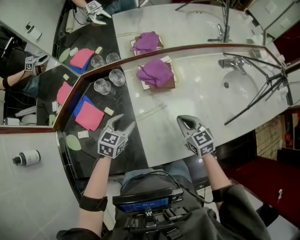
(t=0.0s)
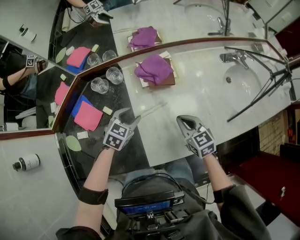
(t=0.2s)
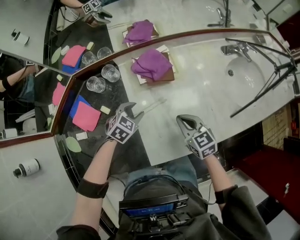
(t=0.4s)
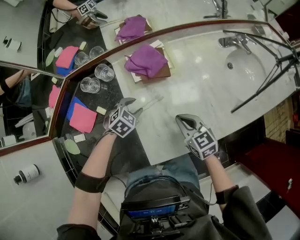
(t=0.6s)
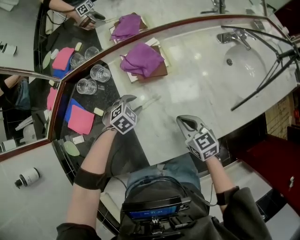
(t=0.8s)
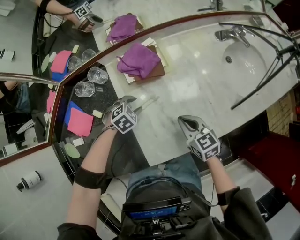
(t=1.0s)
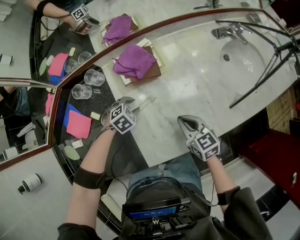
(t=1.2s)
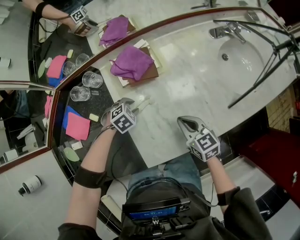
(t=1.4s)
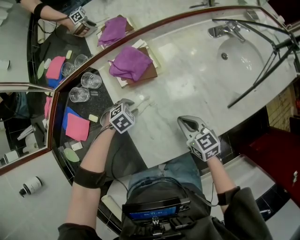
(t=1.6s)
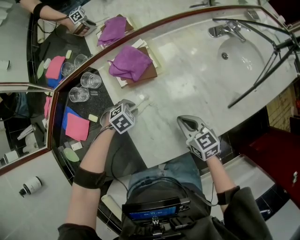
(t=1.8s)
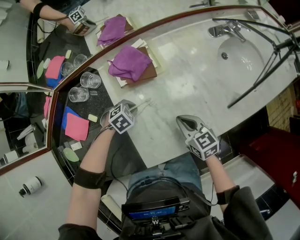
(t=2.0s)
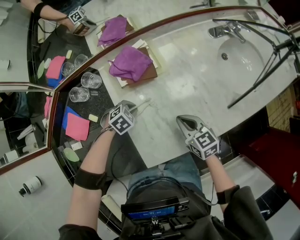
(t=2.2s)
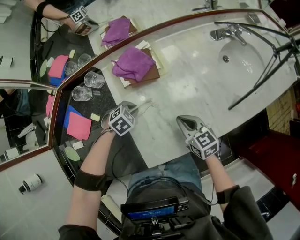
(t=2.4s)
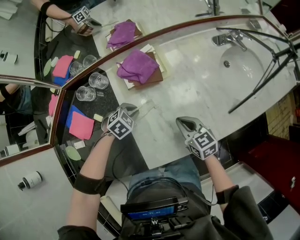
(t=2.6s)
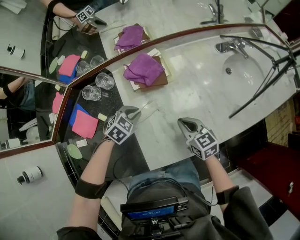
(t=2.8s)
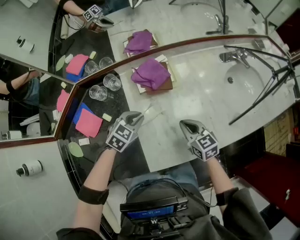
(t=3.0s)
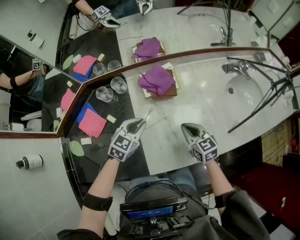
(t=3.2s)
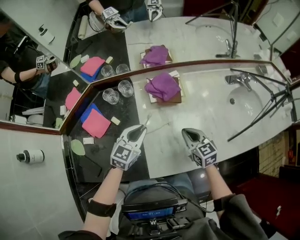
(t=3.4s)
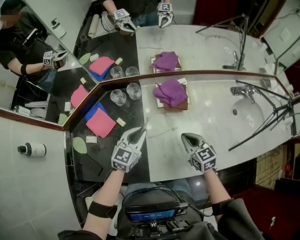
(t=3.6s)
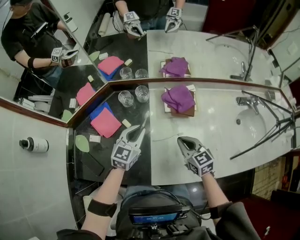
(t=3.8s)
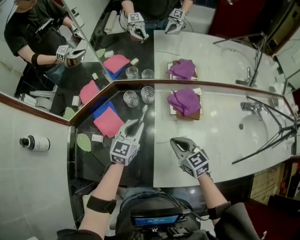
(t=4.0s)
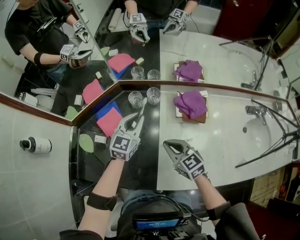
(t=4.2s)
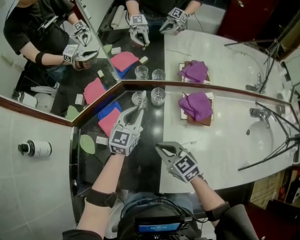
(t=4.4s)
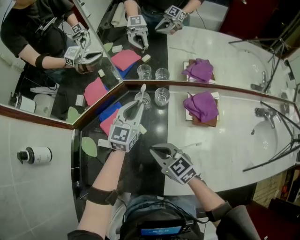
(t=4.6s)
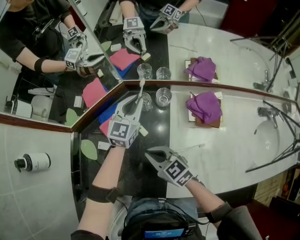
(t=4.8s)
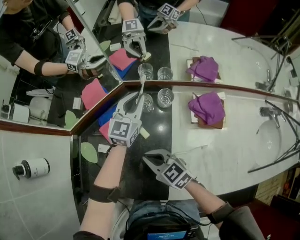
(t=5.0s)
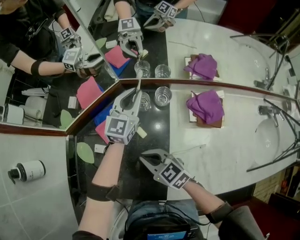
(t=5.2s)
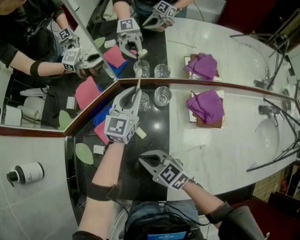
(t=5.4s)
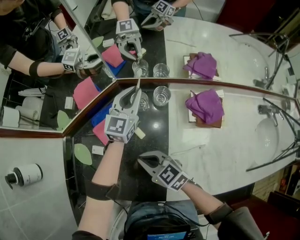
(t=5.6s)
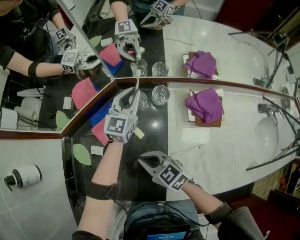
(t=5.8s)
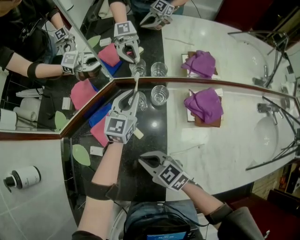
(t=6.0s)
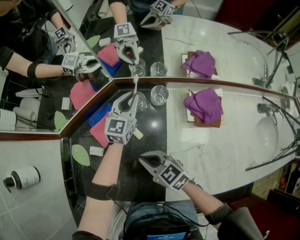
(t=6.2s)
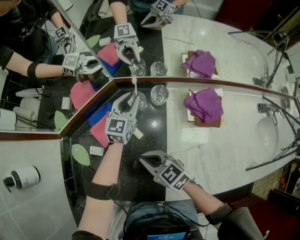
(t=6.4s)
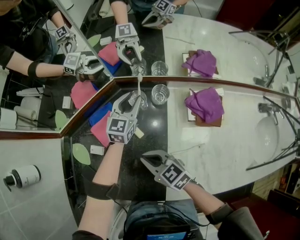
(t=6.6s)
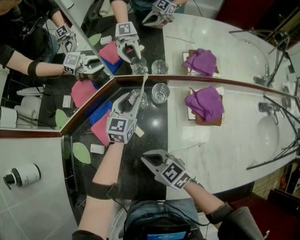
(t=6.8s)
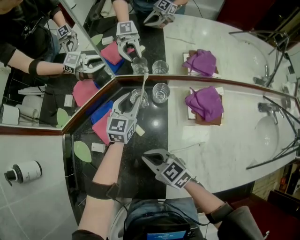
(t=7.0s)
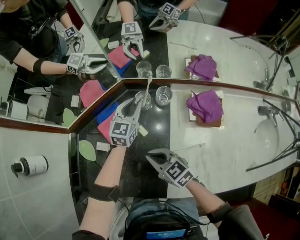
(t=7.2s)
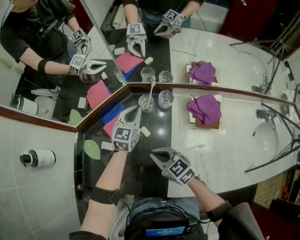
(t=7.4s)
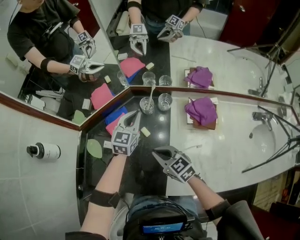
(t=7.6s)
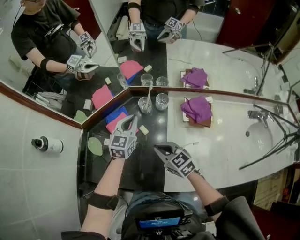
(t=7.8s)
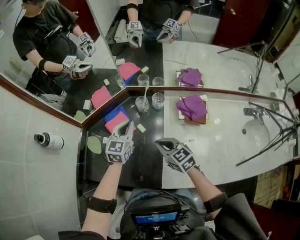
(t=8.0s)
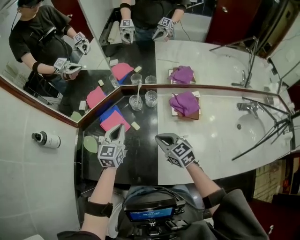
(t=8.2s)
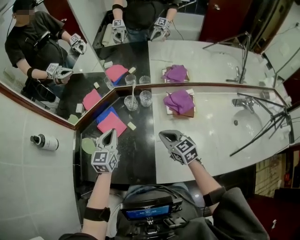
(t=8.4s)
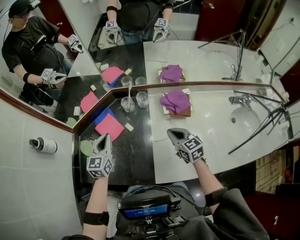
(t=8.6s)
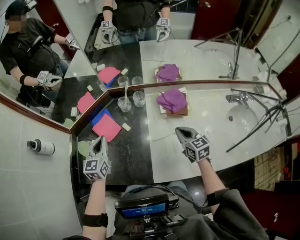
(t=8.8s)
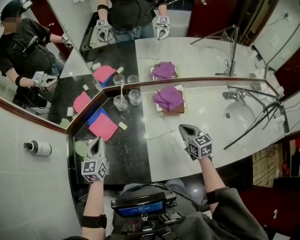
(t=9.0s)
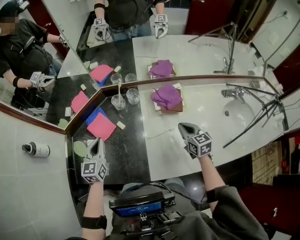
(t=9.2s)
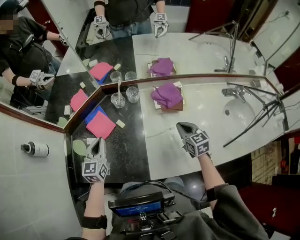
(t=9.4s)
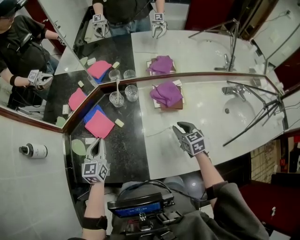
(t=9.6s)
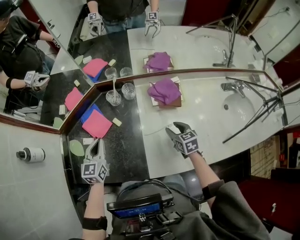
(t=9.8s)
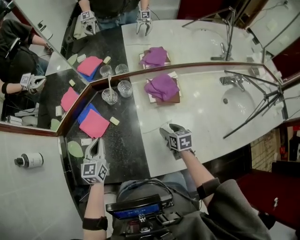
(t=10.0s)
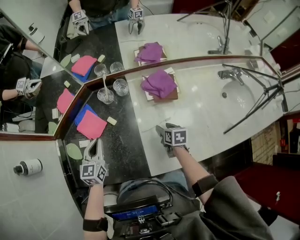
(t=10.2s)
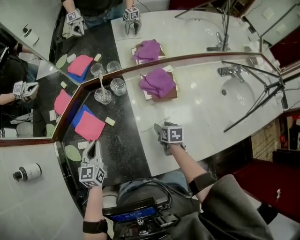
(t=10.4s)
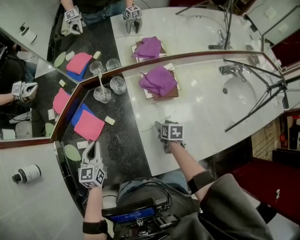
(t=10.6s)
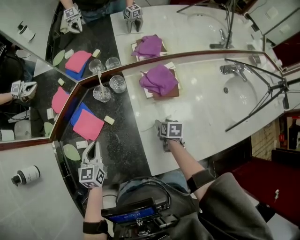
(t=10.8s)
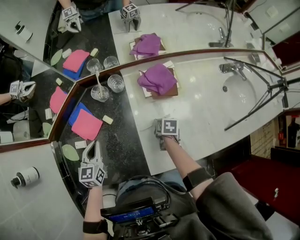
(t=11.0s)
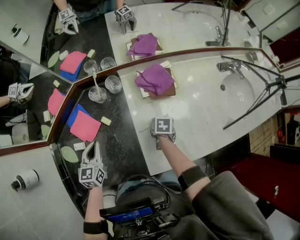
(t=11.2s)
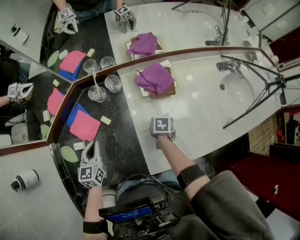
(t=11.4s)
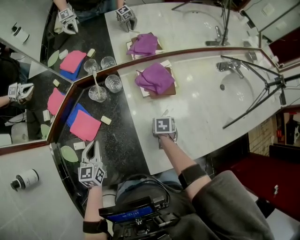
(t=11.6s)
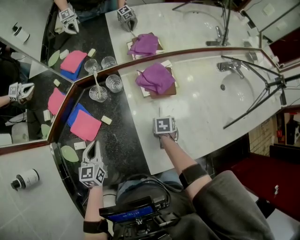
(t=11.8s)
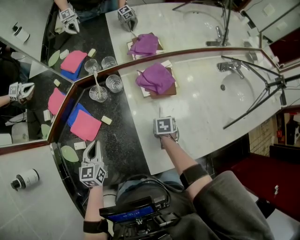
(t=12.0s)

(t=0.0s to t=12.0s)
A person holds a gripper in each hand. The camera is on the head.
t=0.0s - t=1.6s: The left gripper heads downward and to the right, covering approximately 20 cm, and points its fingers roughly 30 degrees further downward. Meanwhile the right gripper shifts approximately 10 cm downward and to the right.
t=1.6s - t=3.0s: The right gripper moves some 5 cm. The left gripper shifts some 15 cm upward, and changes its angle by some 30 degrees.
t=3.0s - t=4.4s: The left gripper moves approximately 25 cm, and angles its fingers upward, by about 30 degrees. The right gripper shifts by approximately 30 cm, and swivels about 30 degrees.
t=4.4s - t=6.0s: The left gripper is displaced forward and downward by some 10 cm. The right gripper moves to the left and downward, some 10 cm.
t=6.0s - t=7.6s: The right gripper moves upward, roughly 5 cm; the left gripper moves backward and to the left, approximately 10 cm, and opens, then closes again.
t=7.6s - t=9.0s: The left gripper goes some 20 cm backward, to the left and upward. Meanwhile the right gripper moves to the right, about 25 cm, and turns by about 40 degrees.
t=9.0s - t=10.4s: The left gripper is displaced downward by about 5 cm. Meanwhile the right gripper shifts some 20 cm downward, rotates some 40 degrees, and opens.
t=10.4s - t=12.0s: The right gripper closes its fingers.

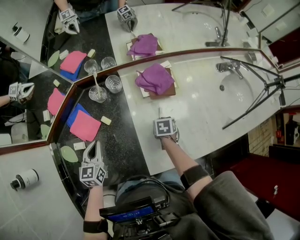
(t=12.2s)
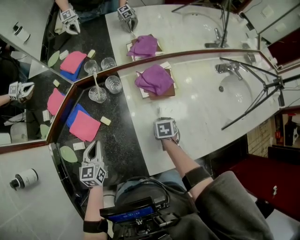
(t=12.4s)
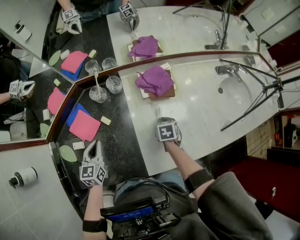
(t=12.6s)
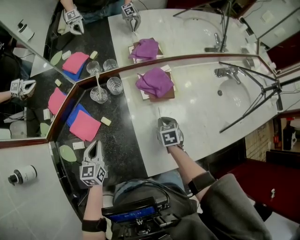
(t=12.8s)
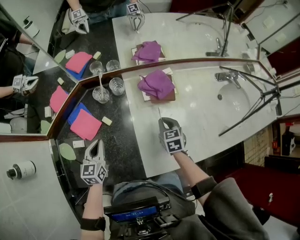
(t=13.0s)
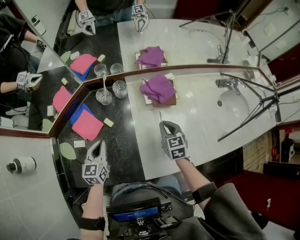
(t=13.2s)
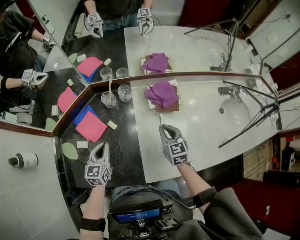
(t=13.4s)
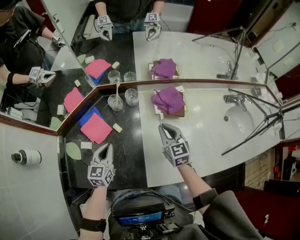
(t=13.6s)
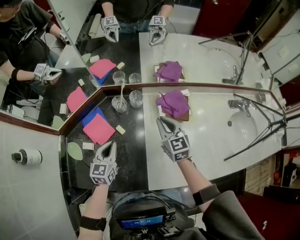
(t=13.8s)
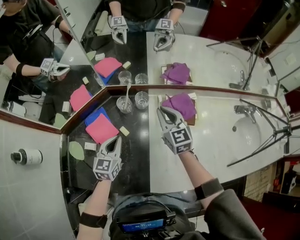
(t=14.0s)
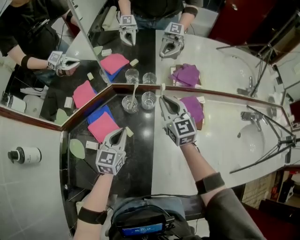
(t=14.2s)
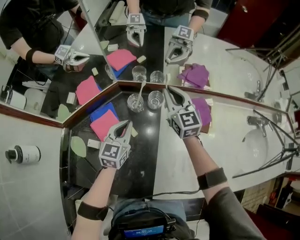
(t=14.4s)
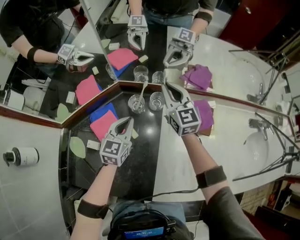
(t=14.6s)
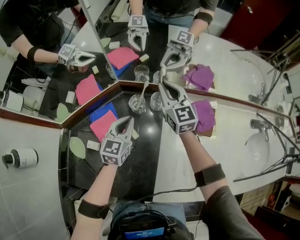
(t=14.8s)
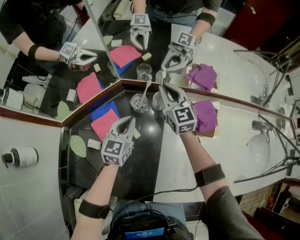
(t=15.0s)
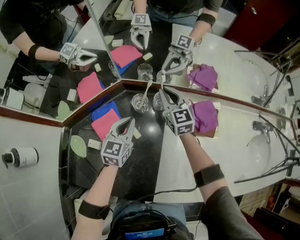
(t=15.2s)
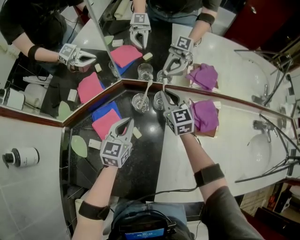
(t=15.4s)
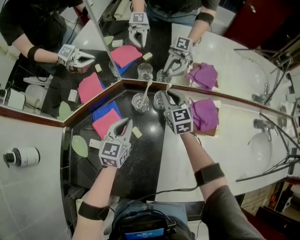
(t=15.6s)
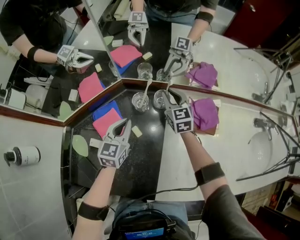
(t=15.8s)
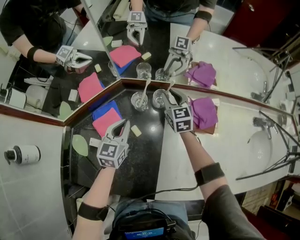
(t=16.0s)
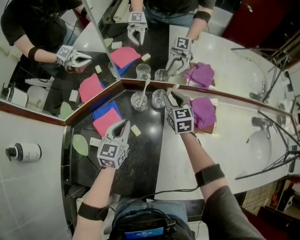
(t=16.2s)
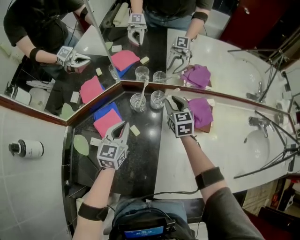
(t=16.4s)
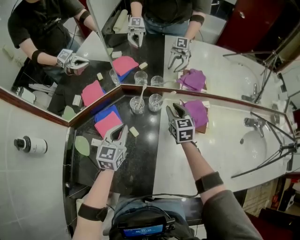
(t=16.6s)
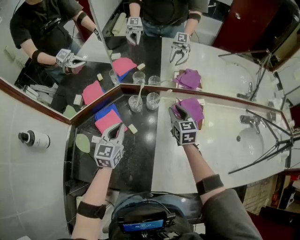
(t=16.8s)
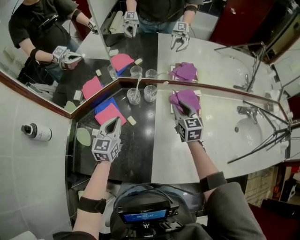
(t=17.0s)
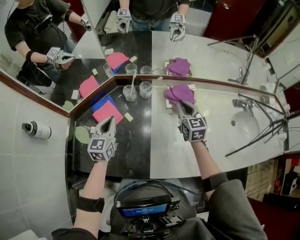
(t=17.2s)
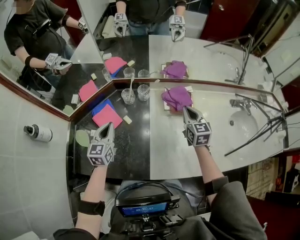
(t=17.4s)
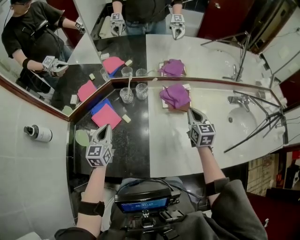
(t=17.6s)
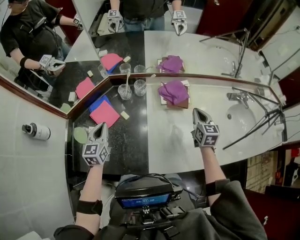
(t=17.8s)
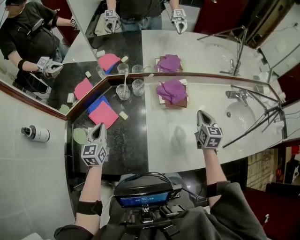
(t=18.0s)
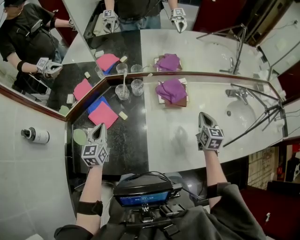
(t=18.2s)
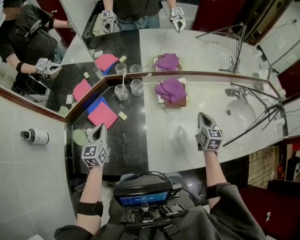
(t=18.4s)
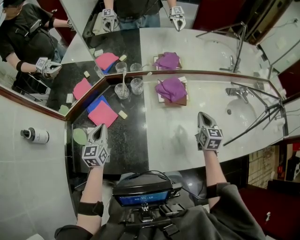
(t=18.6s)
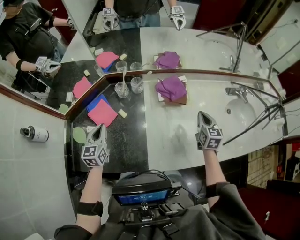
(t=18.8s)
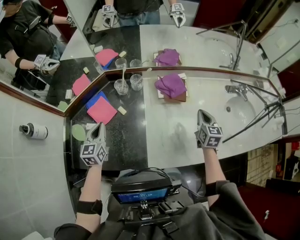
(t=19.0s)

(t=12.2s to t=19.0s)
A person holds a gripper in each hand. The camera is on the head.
t=12.2s - t=13.6s: The right gripper moves upward, some 20 cm, and tilts its fingers roughly 40 degrees upward.
t=13.6s - t=15.0s: The right gripper is displaced forward and to the left by about 25 cm, and turns by roughly 20 degrees, while the left gripper travels forward by about 15 cm.
t=15.0s - t=16.2s: The right gripper heads downward, covering roughly 10 cm, and opens its fingers.
t=16.2s - t=17.6s: The right gripper shifts roughly 30 cm backward, to the right and upward, and closes its fingers; the left gripper moves backward and upward, roughly 15 cm.
t=17.6s - t=19.0s: The right gripper moves to the right, about 10 cm.

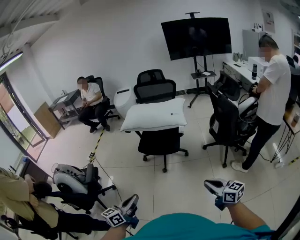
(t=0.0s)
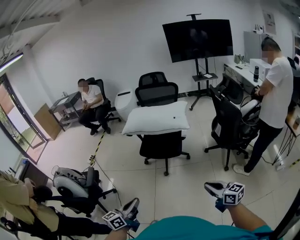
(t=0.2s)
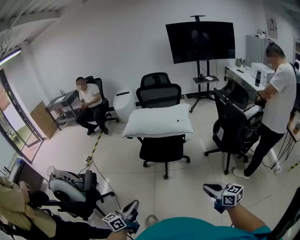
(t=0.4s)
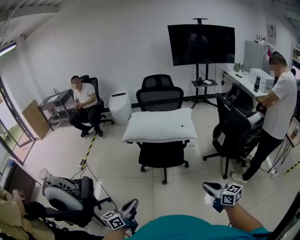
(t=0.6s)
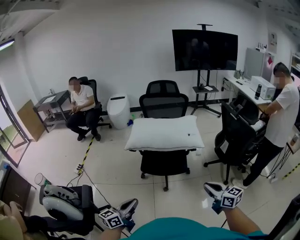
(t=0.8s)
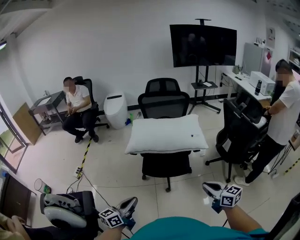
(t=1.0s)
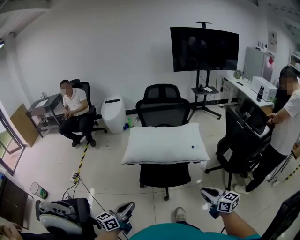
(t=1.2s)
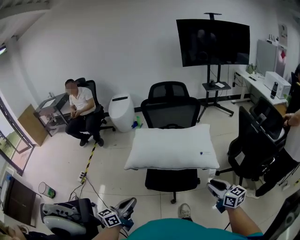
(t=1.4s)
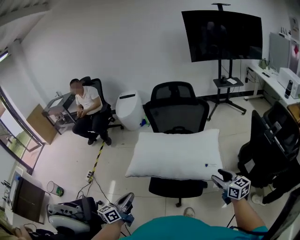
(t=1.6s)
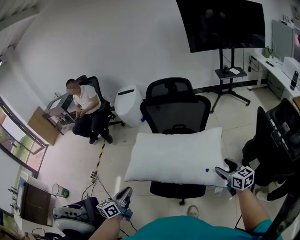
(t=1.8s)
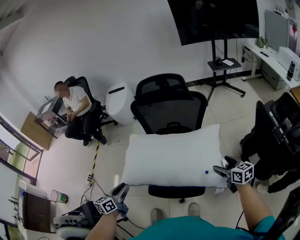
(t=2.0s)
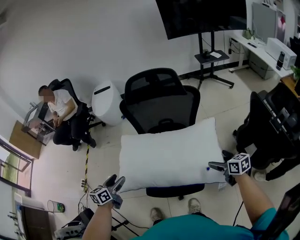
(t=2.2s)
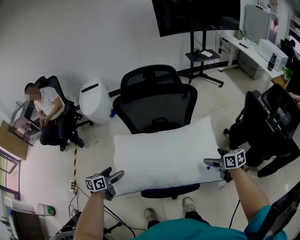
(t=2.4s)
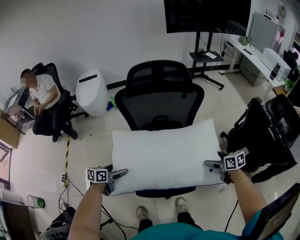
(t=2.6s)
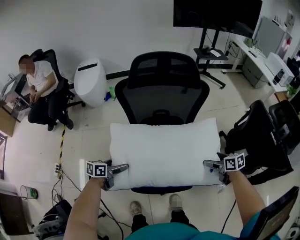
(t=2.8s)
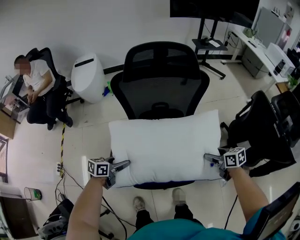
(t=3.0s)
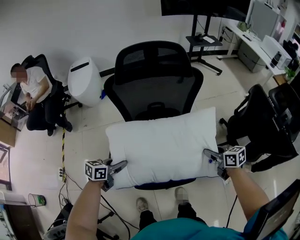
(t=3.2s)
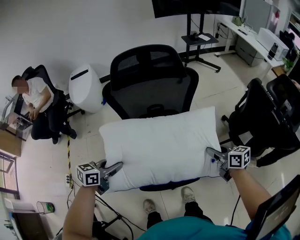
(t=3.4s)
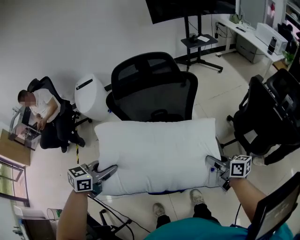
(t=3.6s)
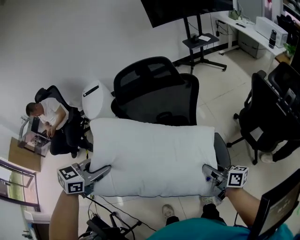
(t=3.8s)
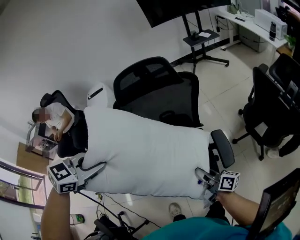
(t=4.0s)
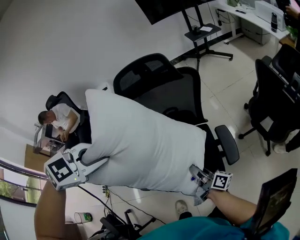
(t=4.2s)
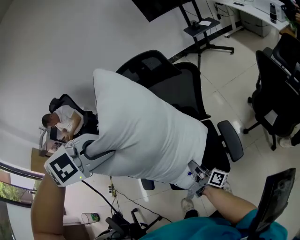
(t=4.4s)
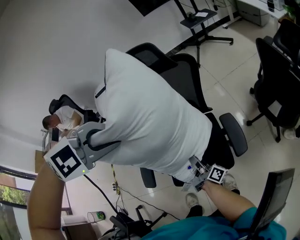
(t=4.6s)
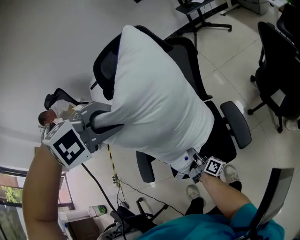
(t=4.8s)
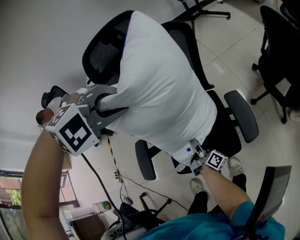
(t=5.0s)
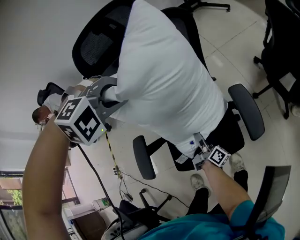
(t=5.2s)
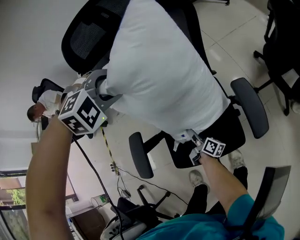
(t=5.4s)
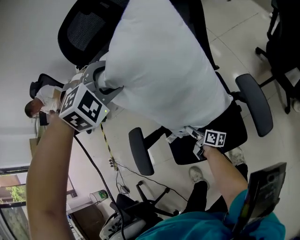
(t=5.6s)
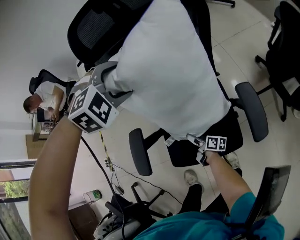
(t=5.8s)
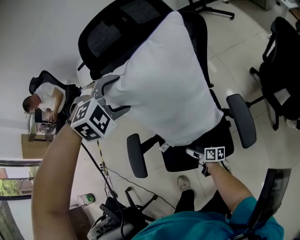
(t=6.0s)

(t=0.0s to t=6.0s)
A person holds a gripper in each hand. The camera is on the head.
t=0.0s - t=1.6s: The pair of grippers is taken forward, roughly 60 cm.
t=1.6s - t=3.0s: The left gripper heads forward and downward, covering about 35 cm, swivels some 40 degrees, and opens; the right gripper travels forward and downward by roughly 25 cm, rotates roughly 30 degrees, and opens, then closes once more.
t=3.0s - t=4.4s: The left gripper is displaced upward by approximately 40 cm, rotates around the line of its fingers by about 80 degrees, clockwise from behind, and closes its fingers. Meanwhile the right gripper shifts some 15 cm to the left, angles its fingers upward, by about 50 degrees, and closes its fingers.
t=4.4s - t=6.0s: Both grippers travel together downward, approximately 25 cm. The right gripper tilts its fingers about 30 degrees downward, and opens up. Meanwhile the left gripper opens up.
